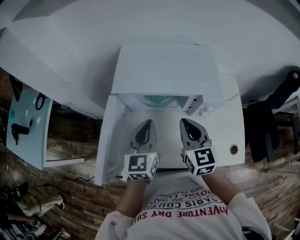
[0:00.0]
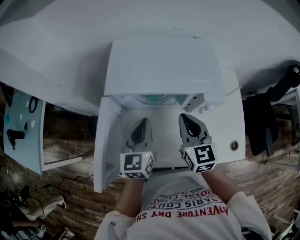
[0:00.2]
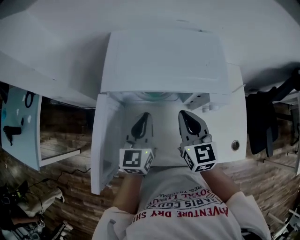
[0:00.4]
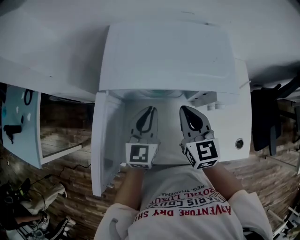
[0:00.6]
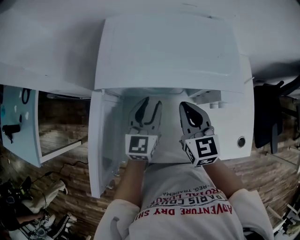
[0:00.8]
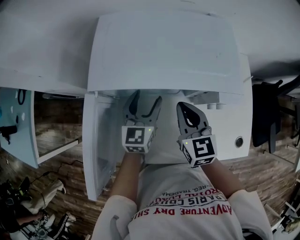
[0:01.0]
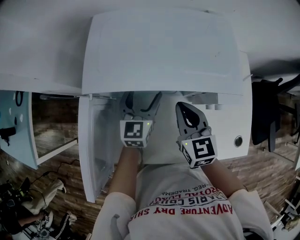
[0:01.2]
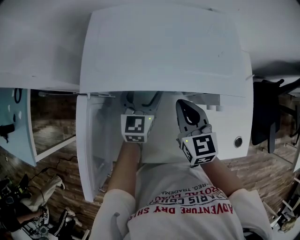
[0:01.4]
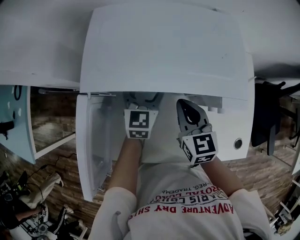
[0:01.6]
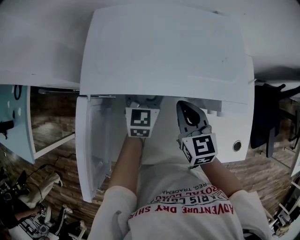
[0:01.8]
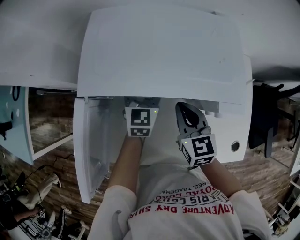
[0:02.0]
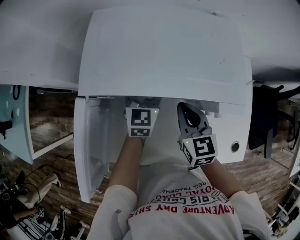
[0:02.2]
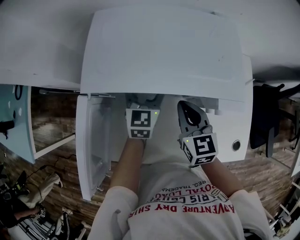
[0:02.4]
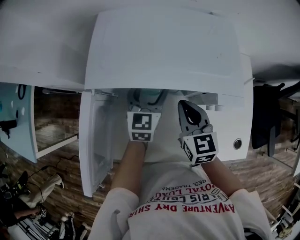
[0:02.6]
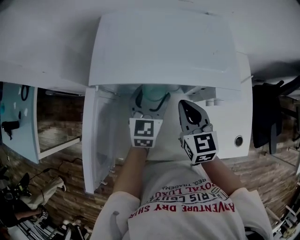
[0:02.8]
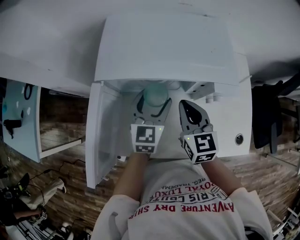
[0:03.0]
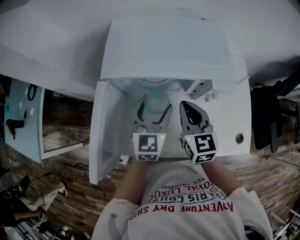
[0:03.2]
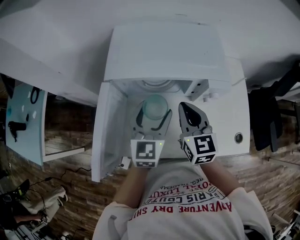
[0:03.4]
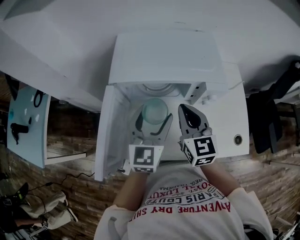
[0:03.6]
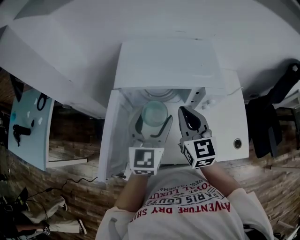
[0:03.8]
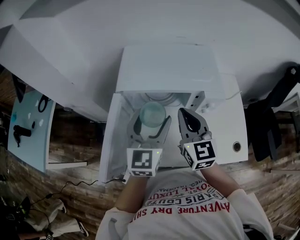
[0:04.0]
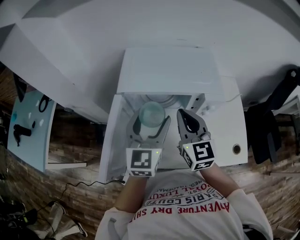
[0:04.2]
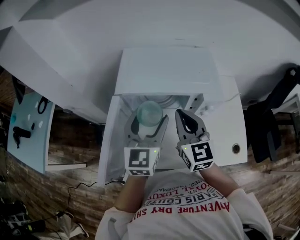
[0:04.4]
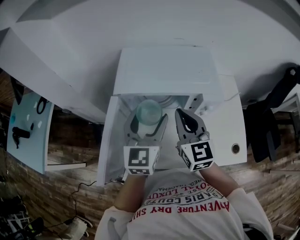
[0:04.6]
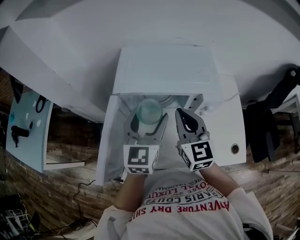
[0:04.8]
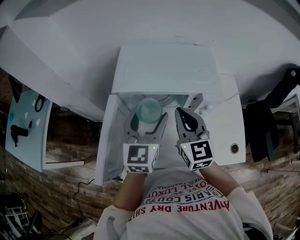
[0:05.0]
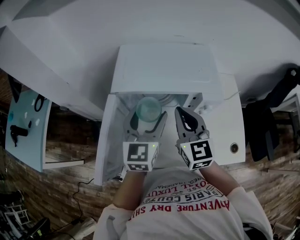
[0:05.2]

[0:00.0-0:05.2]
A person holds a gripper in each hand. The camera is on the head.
0.0 to 1.8 s: The right gripper travels downward and forward by roughly 15 cm, while the left gripper goes roughly 20 cm forward and downward, and opens its fingers.
1.8 to 3.4 s: The left gripper travels backward and upward by some 20 cm; the right gripper is displaced upward and backward by roughly 10 cm.
3.4 to 5.2 s: Both grippers travel together upward, some 5 cm.

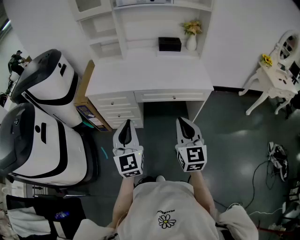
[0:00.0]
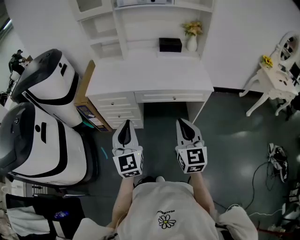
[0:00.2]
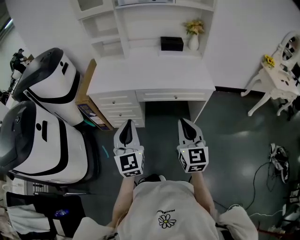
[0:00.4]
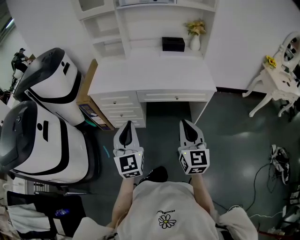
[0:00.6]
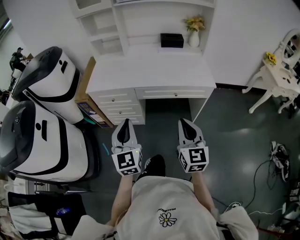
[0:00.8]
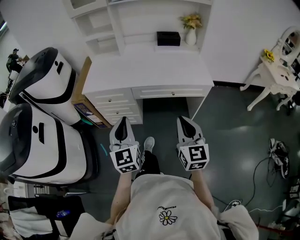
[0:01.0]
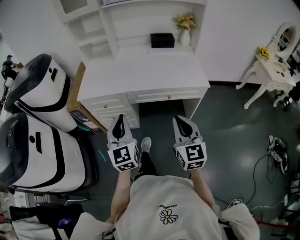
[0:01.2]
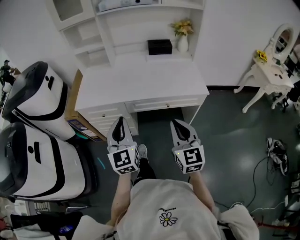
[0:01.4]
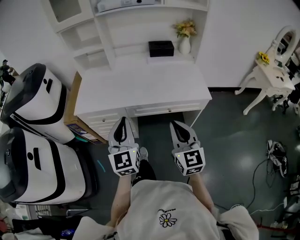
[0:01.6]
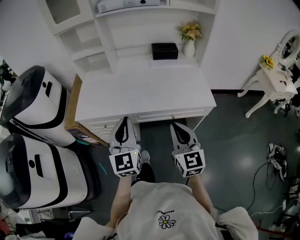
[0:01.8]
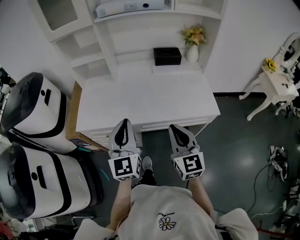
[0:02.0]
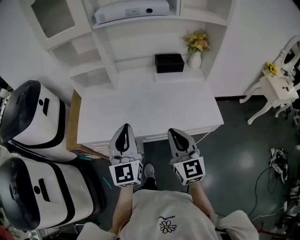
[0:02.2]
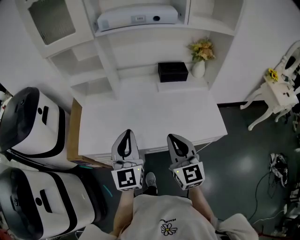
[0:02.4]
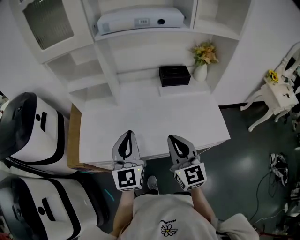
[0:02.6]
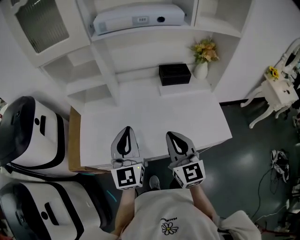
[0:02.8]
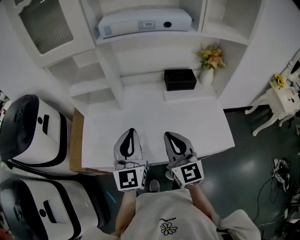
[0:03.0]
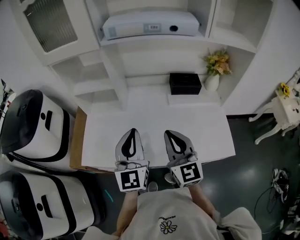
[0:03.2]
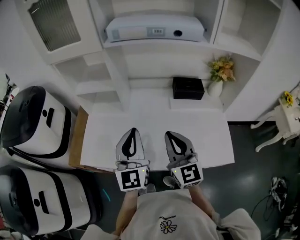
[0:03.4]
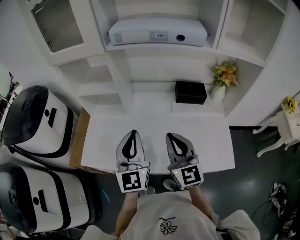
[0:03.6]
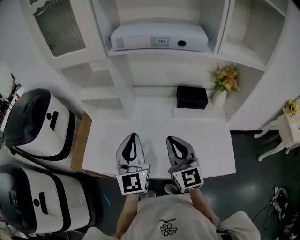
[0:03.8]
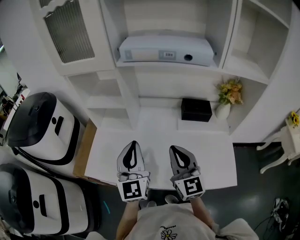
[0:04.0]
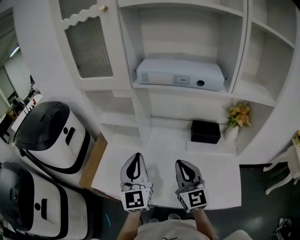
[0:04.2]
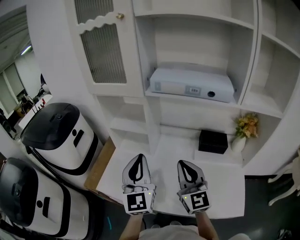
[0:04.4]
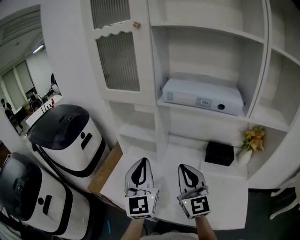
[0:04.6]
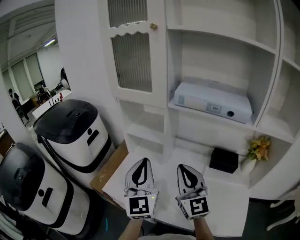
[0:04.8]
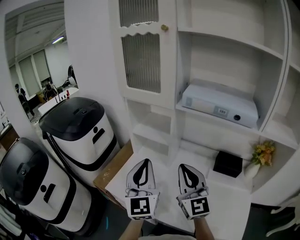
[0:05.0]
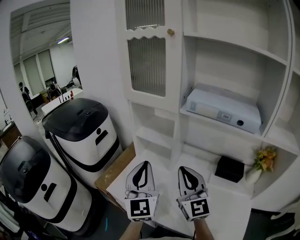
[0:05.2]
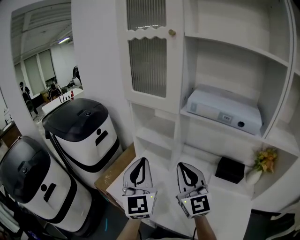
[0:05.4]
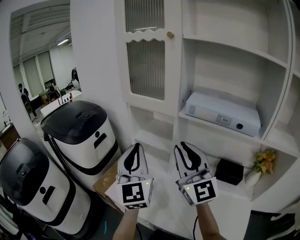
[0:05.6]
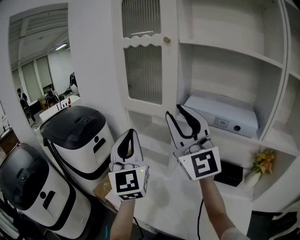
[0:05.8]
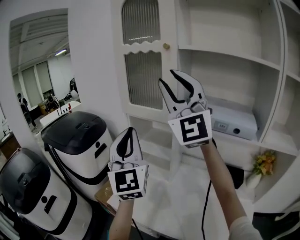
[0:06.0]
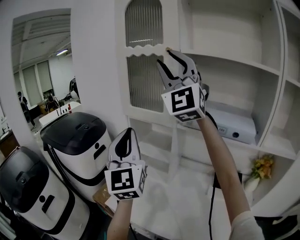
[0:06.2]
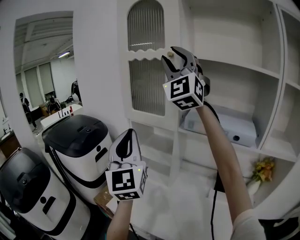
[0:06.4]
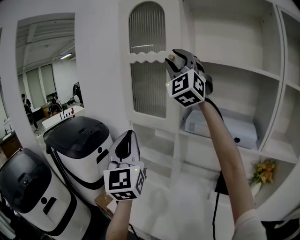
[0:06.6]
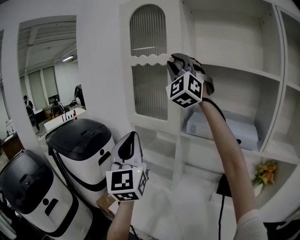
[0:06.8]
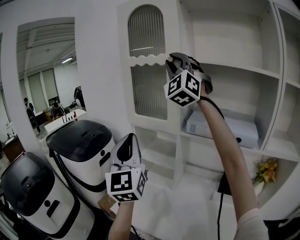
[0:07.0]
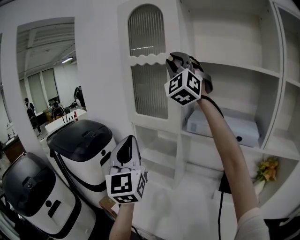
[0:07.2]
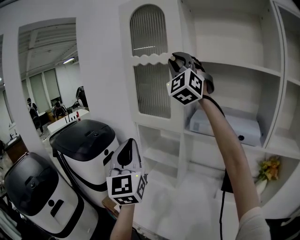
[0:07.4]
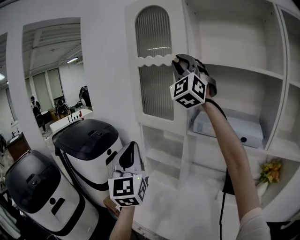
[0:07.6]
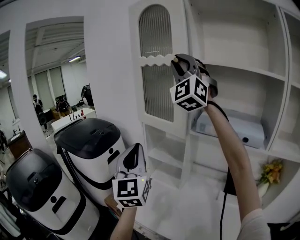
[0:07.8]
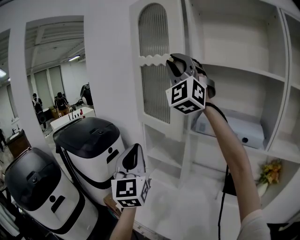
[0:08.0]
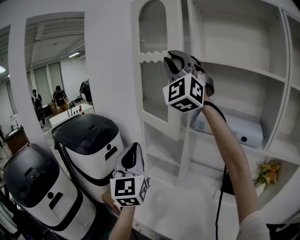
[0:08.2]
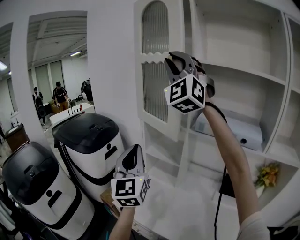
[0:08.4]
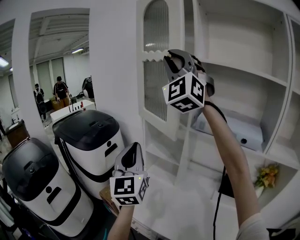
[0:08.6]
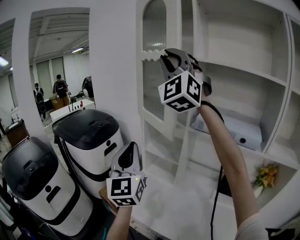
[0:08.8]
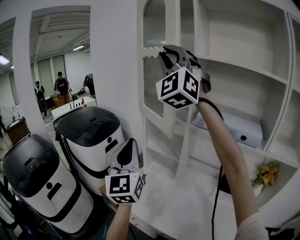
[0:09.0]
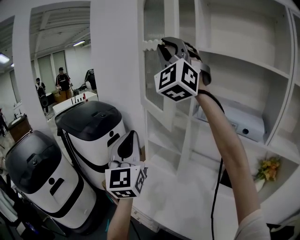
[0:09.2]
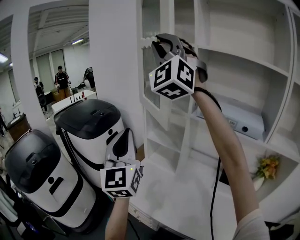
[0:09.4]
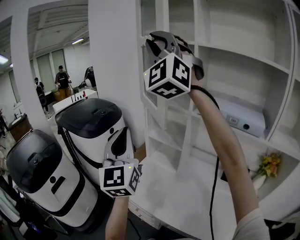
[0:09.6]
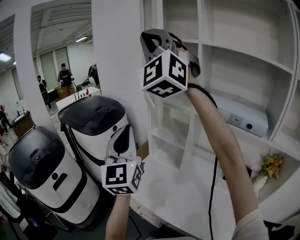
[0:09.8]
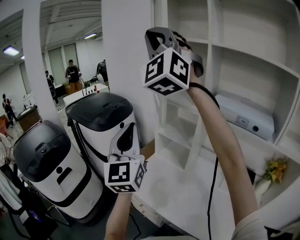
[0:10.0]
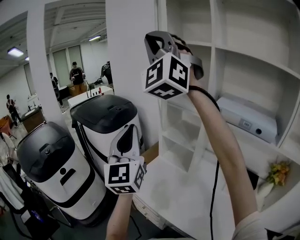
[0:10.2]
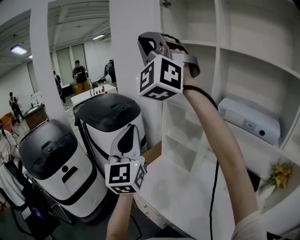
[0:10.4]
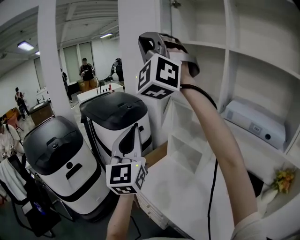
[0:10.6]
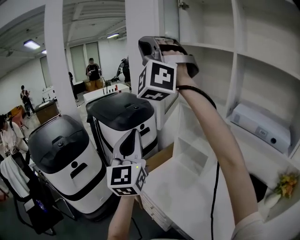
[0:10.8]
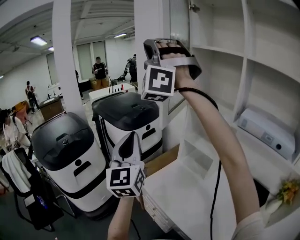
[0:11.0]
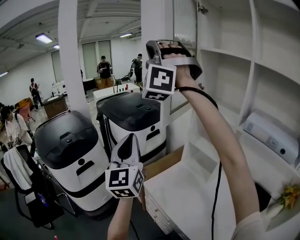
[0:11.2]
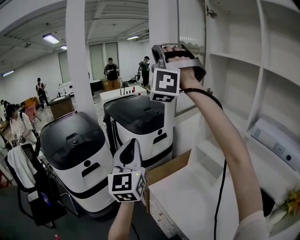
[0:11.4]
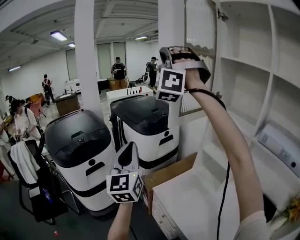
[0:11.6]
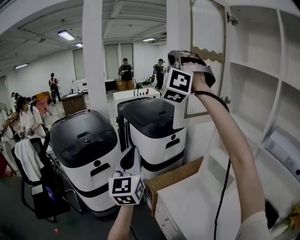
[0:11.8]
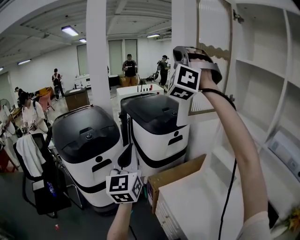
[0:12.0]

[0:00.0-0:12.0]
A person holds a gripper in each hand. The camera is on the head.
0.0 to 1.6 s: Both grippers move forward, approximately 10 cm.
1.6 to 3.0 s: Both grippers move forward, some 30 cm.
3.0 to 4.4 s: The left gripper travels upward and forward by roughly 10 cm, and rotates some 20 degrees, while the right gripper moves forward and upward, roughly 15 cm.
4.4 to 6.0 s: The left gripper travels upward and to the left by about 20 cm, and changes its angle by about 20 degrees, while the right gripper shifts some 35 cm upward, rotates some 50 degrees, and opens up.
6.0 to 7.6 s: The right gripper travels forward and upward by approximately 15 cm, and turns by approximately 30 degrees.
7.6 to 9.0 s: The right gripper travels to the left and backward by roughly 10 cm.
9.0 to 10.4 s: The left gripper shifts some 5 cm to the left. Meanwhile the right gripper shifts some 15 cm to the left.
10.4 to 12.0 s: The left gripper travels to the left by some 20 cm, and swivels some 20 degrees; the right gripper goes approximately 20 cm forward and to the left.

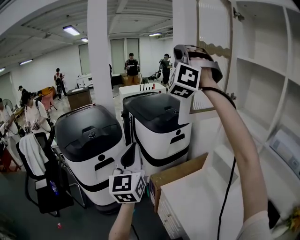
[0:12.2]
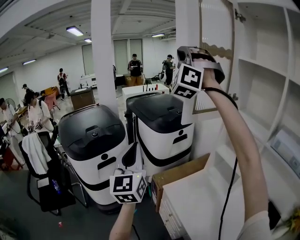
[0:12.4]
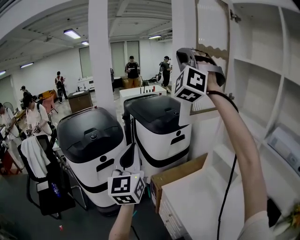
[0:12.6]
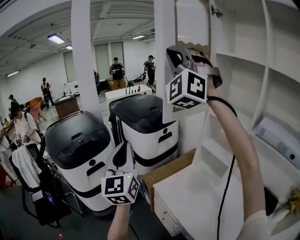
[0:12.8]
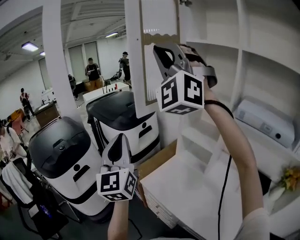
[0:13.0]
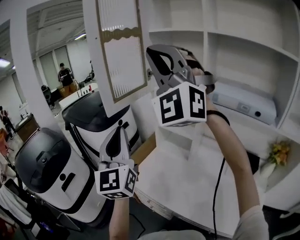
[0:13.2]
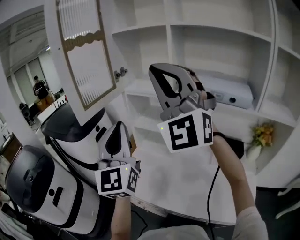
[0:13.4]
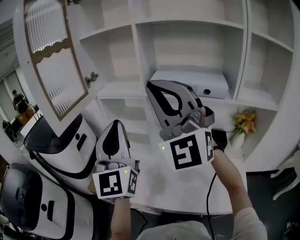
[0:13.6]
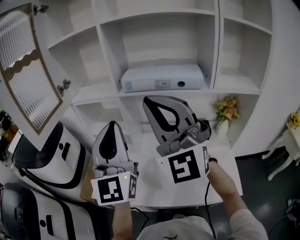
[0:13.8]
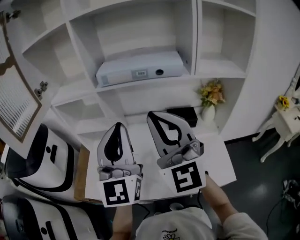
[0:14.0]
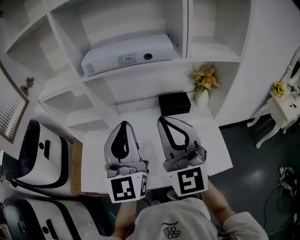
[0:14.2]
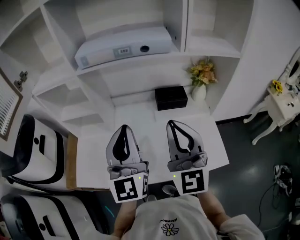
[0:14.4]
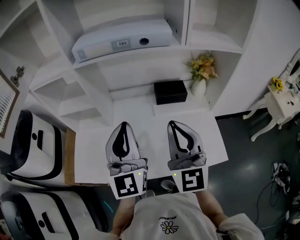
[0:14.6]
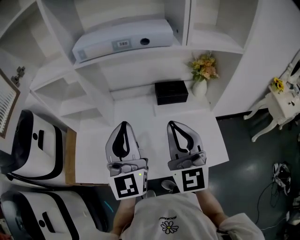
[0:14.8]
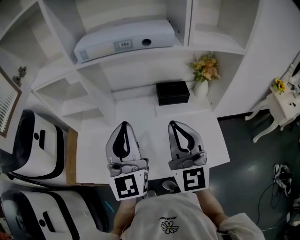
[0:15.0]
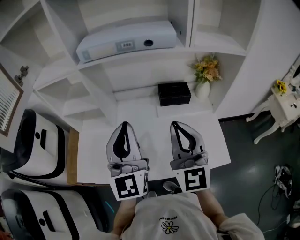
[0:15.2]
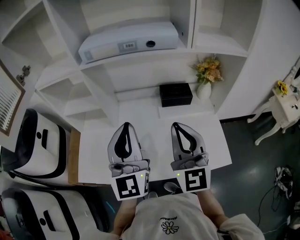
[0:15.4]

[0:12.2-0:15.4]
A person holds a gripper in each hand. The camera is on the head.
12.2 to 13.8 s: The two grippers travel together, about 40 cm. The right gripper changes its angle by about 40 degrees. The left gripper turns by about 60 degrees.
13.8 to 15.4 s: Both grippers move downward and to the right, about 20 cm. The right gripper turns by some 40 degrees.

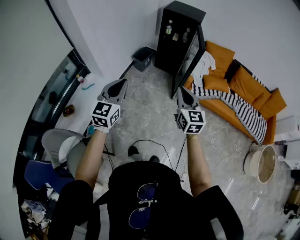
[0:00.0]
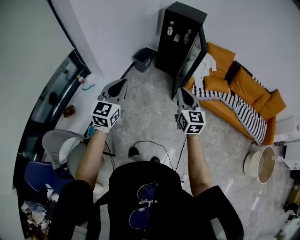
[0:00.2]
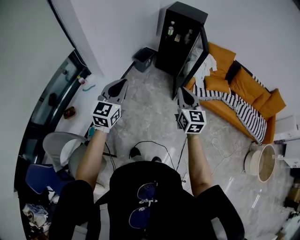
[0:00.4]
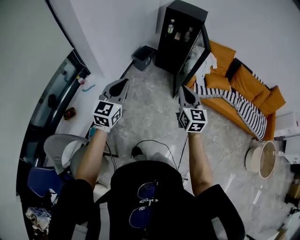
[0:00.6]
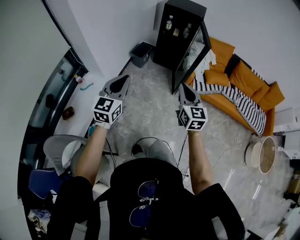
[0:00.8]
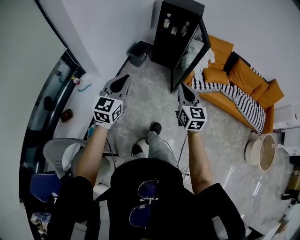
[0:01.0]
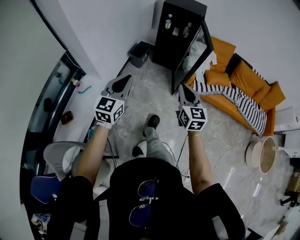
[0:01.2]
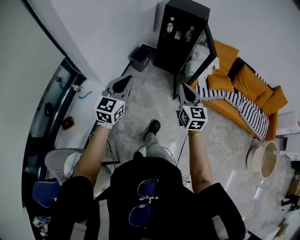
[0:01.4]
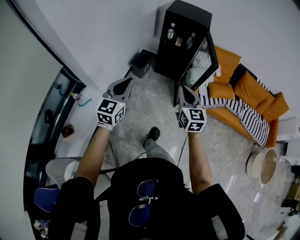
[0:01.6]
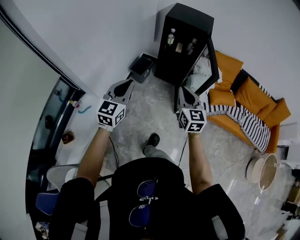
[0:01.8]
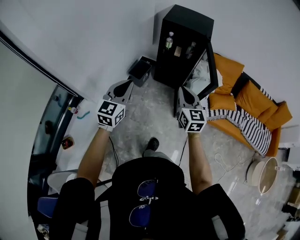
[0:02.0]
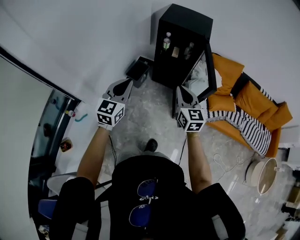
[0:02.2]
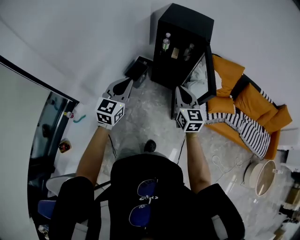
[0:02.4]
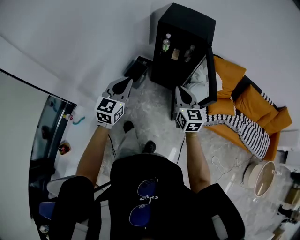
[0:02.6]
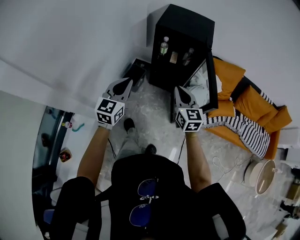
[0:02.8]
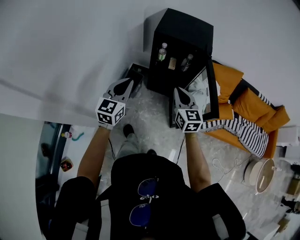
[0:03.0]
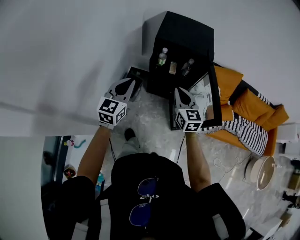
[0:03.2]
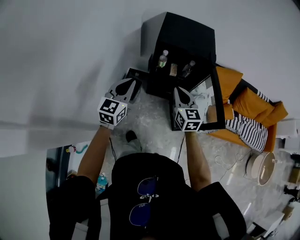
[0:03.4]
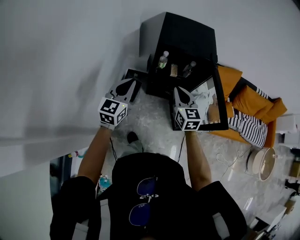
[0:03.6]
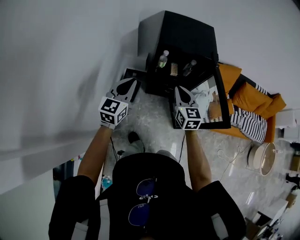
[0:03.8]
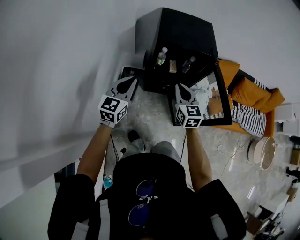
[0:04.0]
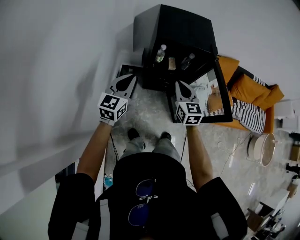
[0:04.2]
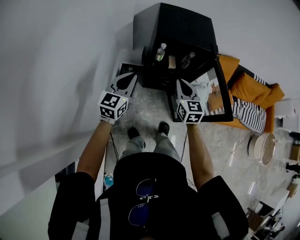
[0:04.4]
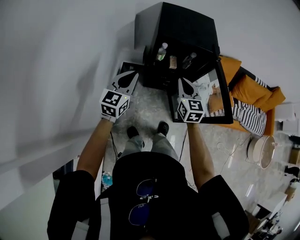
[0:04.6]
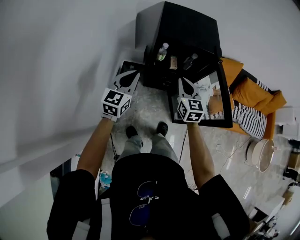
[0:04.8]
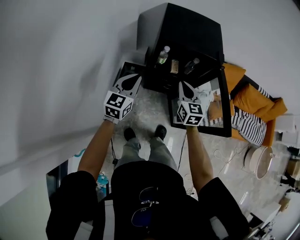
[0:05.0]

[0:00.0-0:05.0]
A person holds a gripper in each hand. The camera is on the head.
0.0 to 1.6 s: Both grippers travel together forward, some 20 cm.
1.6 to 3.4 s: The pair of grippers is taken forward, roughly 50 cm.
3.4 to 5.0 s: Both grippers move forward and downward, some 10 cm.
